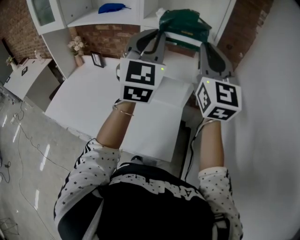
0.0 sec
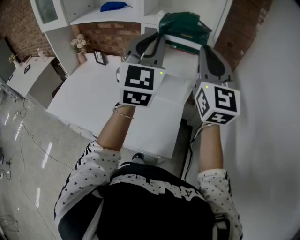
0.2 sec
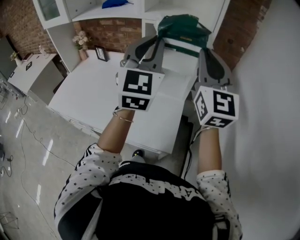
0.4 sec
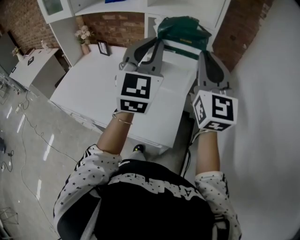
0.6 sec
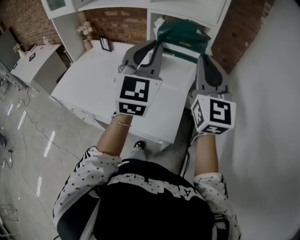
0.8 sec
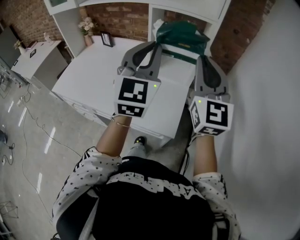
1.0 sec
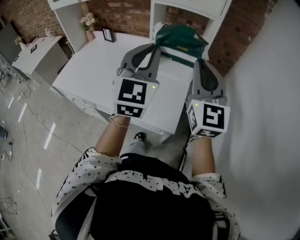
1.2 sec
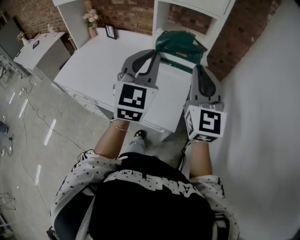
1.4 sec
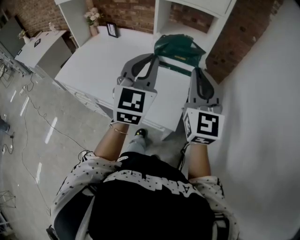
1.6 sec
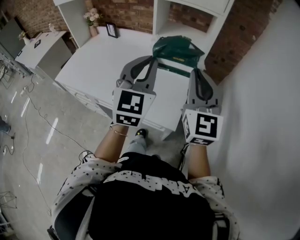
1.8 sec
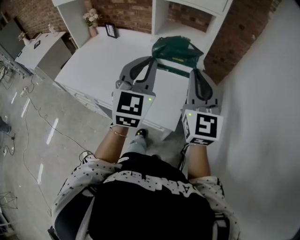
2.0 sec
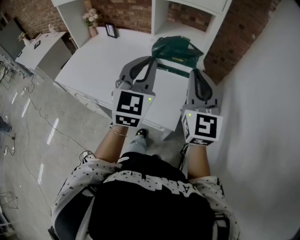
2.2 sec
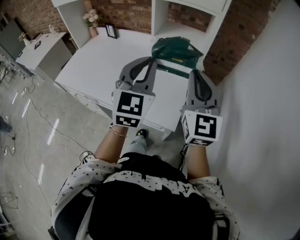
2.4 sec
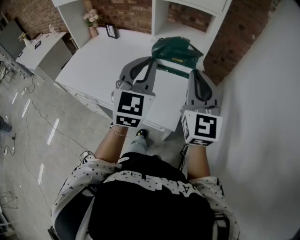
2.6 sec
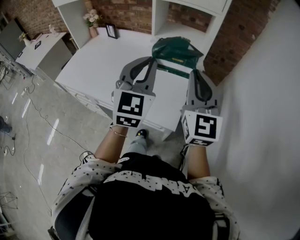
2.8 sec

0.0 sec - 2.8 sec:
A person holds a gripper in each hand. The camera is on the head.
0.0 sec - 1.4 sec: The two grippers go roughly 20 cm backward and downward.
1.4 sec - 2.8 sec: Both grippers stay put.

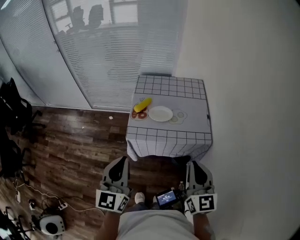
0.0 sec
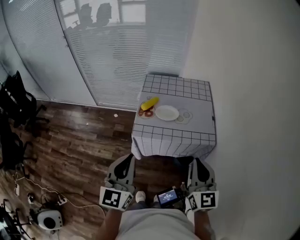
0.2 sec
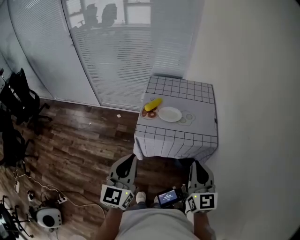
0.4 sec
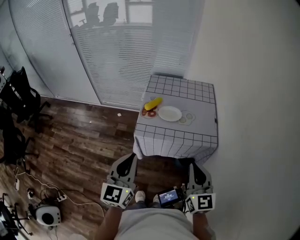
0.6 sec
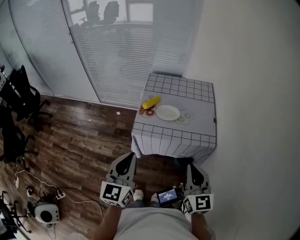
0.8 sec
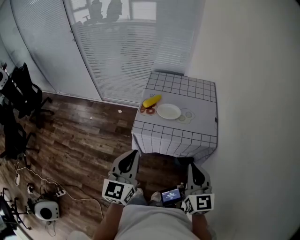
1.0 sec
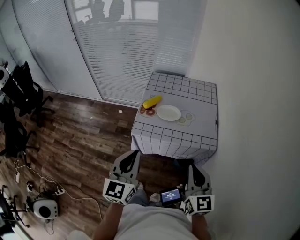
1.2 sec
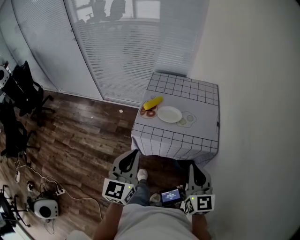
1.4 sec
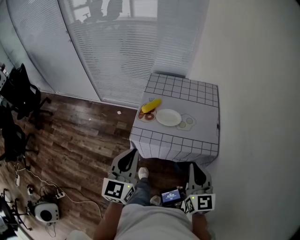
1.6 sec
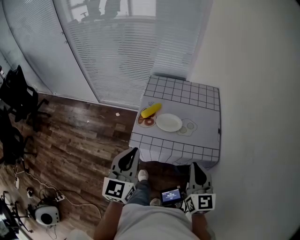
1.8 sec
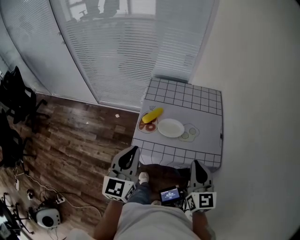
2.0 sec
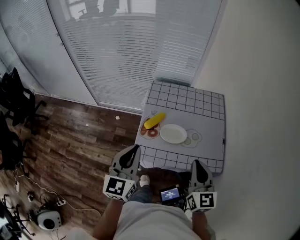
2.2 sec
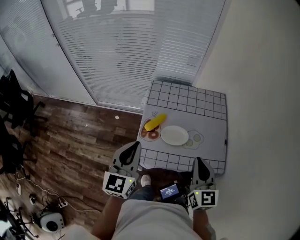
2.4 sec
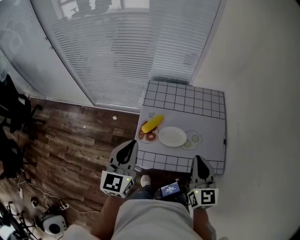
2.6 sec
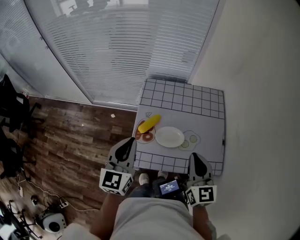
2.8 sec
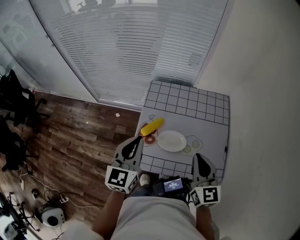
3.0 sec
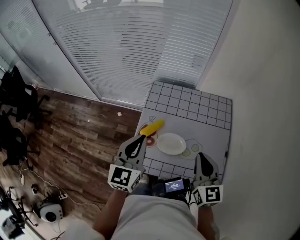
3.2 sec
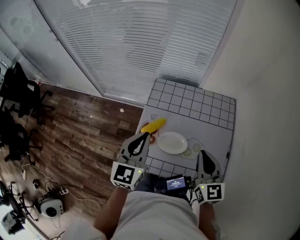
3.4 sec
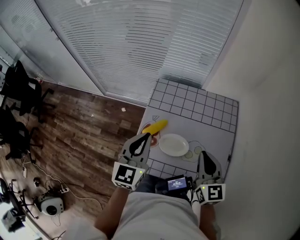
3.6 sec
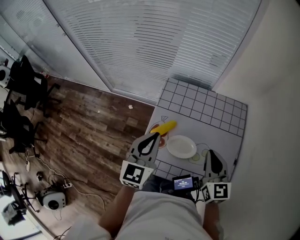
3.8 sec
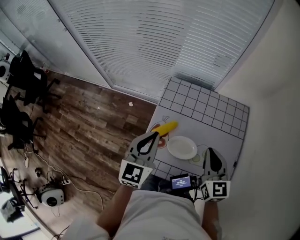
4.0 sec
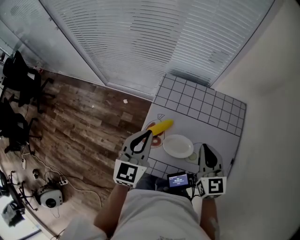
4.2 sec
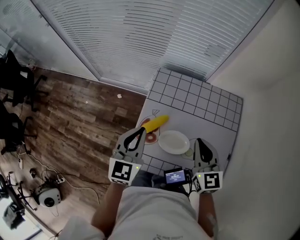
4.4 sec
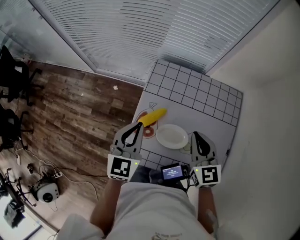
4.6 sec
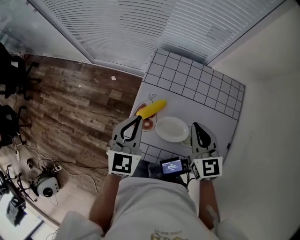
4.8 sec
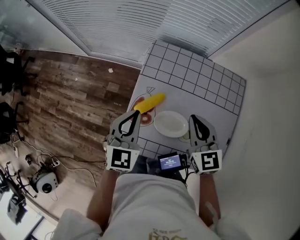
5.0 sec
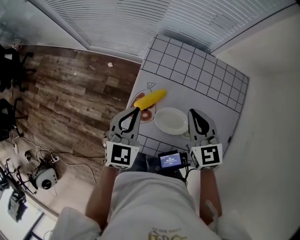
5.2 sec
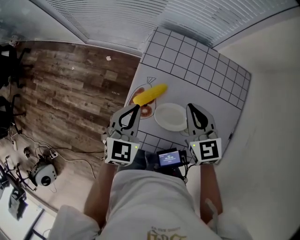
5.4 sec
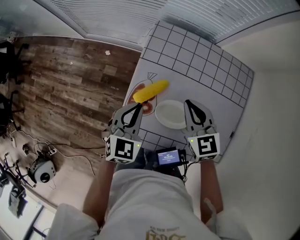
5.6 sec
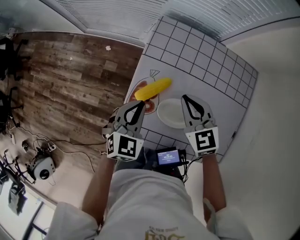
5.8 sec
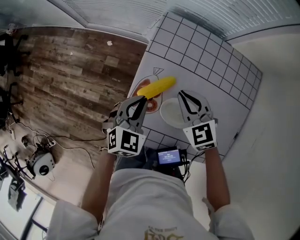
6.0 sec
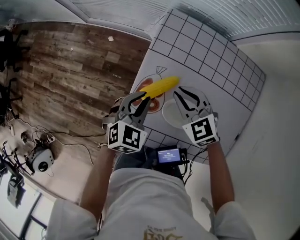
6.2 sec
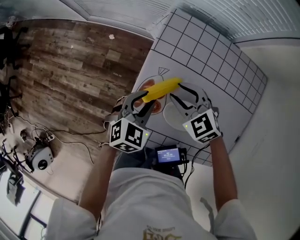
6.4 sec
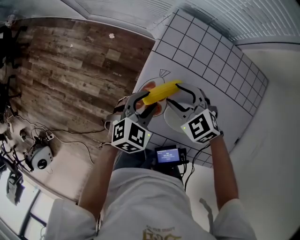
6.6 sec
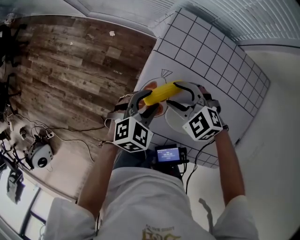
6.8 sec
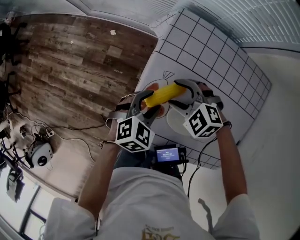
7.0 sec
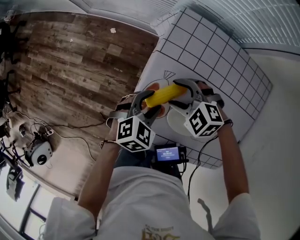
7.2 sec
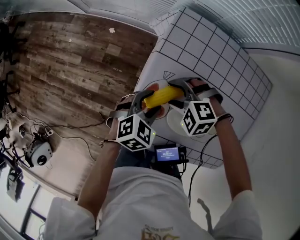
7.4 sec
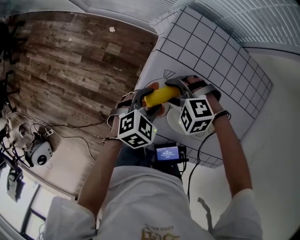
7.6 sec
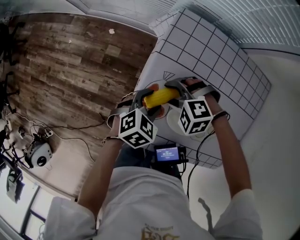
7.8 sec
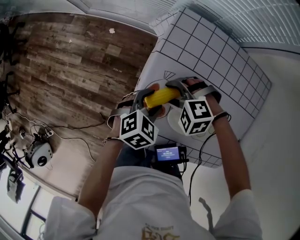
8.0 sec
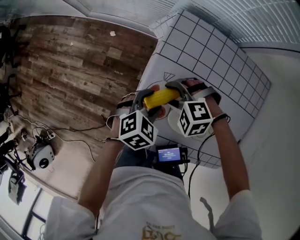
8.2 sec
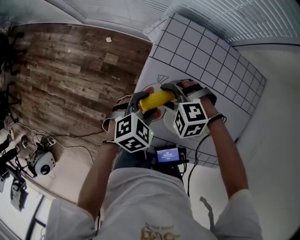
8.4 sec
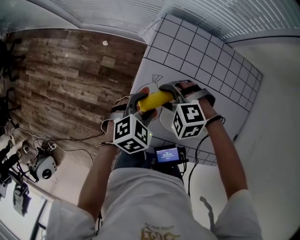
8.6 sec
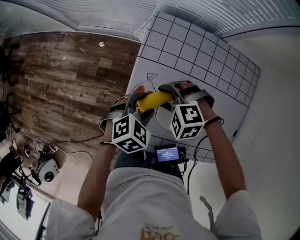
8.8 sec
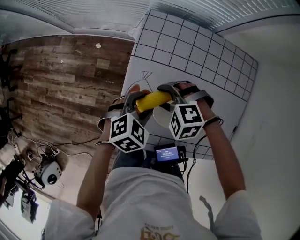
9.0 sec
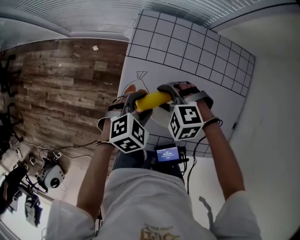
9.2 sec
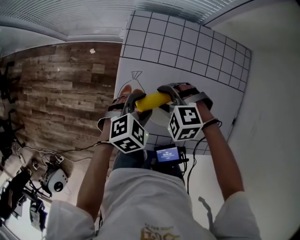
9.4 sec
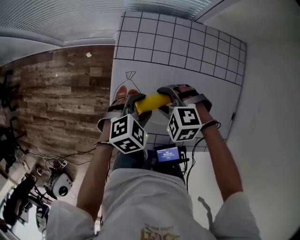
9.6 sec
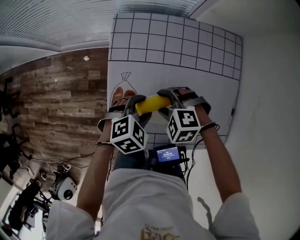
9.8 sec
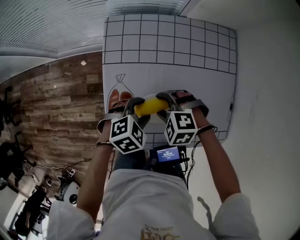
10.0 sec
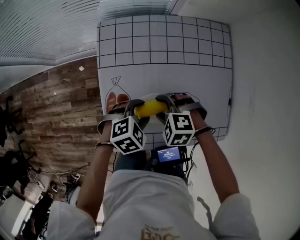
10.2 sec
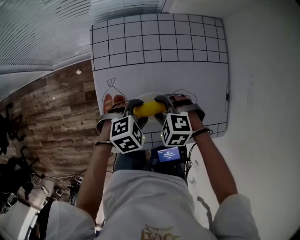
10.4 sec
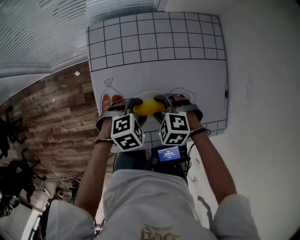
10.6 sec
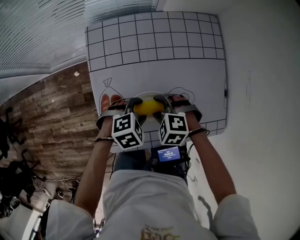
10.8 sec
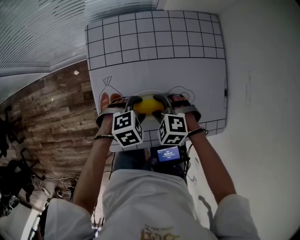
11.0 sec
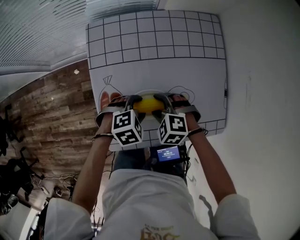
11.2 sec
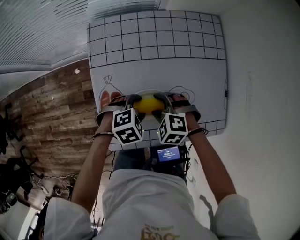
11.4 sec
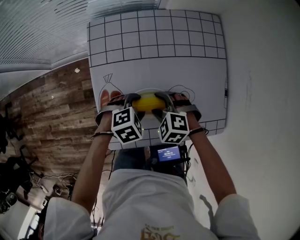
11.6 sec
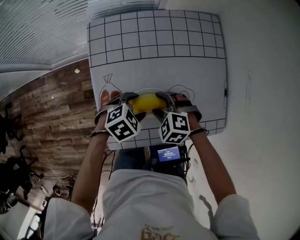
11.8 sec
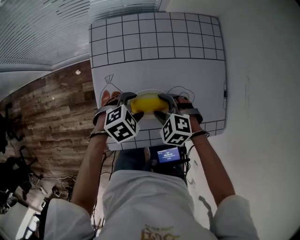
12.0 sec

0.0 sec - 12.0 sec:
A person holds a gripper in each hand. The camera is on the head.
0.0 sec - 1.6 sec: The two grippers go about 5 cm forward.
1.6 sec - 3.0 sec: Both grippers move forward, approximately 25 cm.
3.0 sec - 4.4 sec: The two grippers go some 10 cm forward and downward.
4.4 sec - 6.0 sec: The right gripper shifts about 20 cm downward, to the left and forward, and rotates about 30 degrees. Meanwhile the left gripper travels downward by some 15 cm, and swivels some 30 degrees.
6.0 sec - 7.6 sec: Both grippers move downward, roughly 10 cm. The left gripper swivels some 20 degrees, and opens. Meanwhile the right gripper rotates about 60 degrees, and opens its fingers.
7.6 sec - 9.0 sec: The right gripper changes place by some 5 cm.
9.0 sec - 10.4 sec: The right gripper ends up about 10 cm from where it was, and changes its angle by approximately 30 degrees. Meanwhile the left gripper changes place by approximately 10 cm, and changes its angle by approximately 30 degrees.
10.4 sec - 12.0 sec: The grippers move only a little.

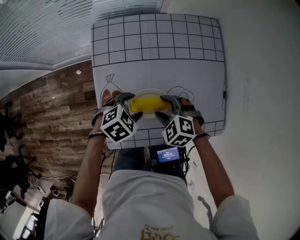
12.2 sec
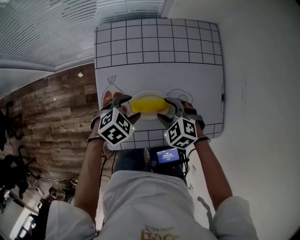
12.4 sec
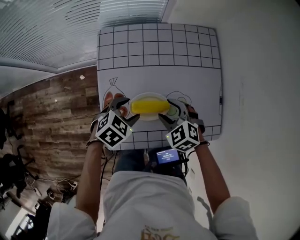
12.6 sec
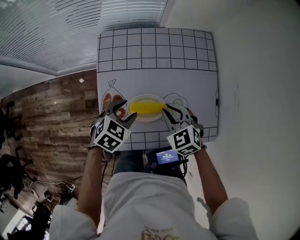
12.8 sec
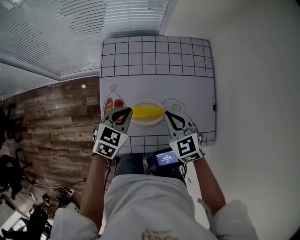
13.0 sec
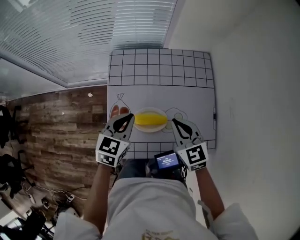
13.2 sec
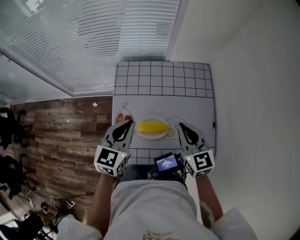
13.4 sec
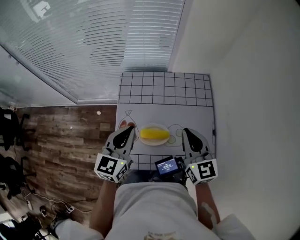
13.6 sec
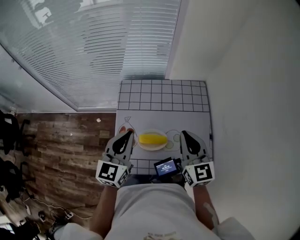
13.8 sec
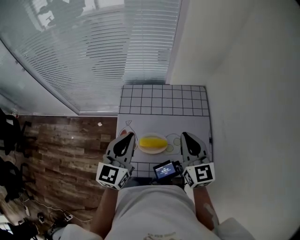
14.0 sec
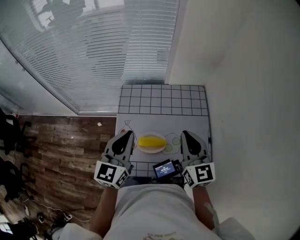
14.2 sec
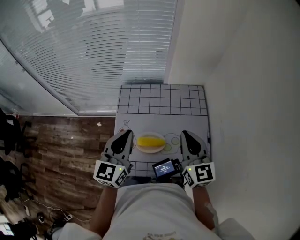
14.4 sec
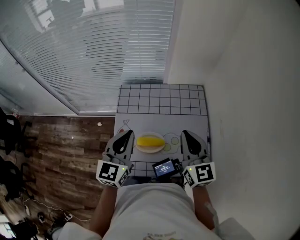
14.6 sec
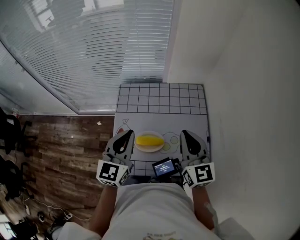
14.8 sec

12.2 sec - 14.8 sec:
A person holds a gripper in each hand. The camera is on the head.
12.2 sec - 13.4 sec: Both grippers move upward, some 20 cm. The left gripper angles its fingers upward, by approximately 40 degrees, and closes up; the right gripper tips its fingers upward by roughly 40 degrees, and closes.
13.4 sec - 14.8 sec: Both grippers travel together upward, some 10 cm.

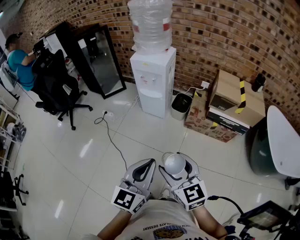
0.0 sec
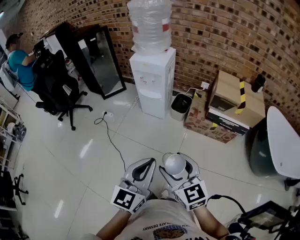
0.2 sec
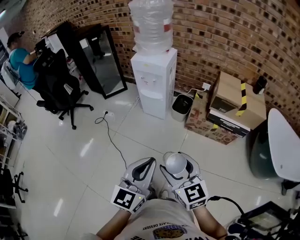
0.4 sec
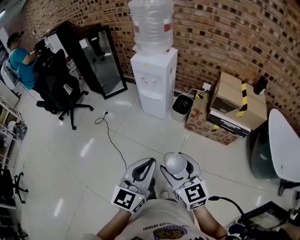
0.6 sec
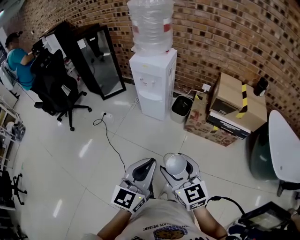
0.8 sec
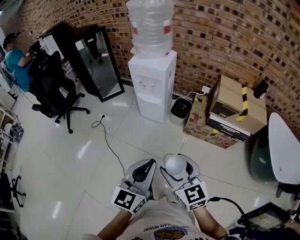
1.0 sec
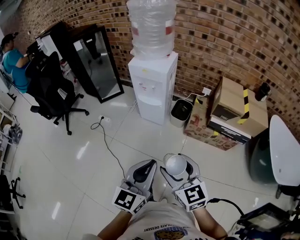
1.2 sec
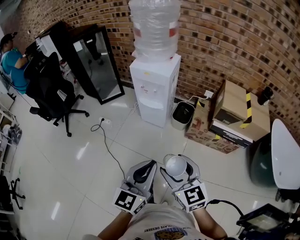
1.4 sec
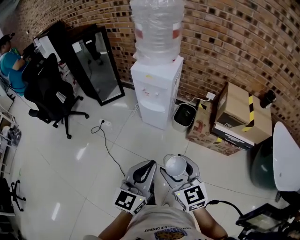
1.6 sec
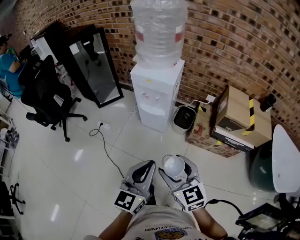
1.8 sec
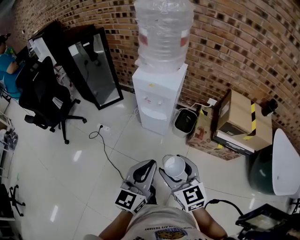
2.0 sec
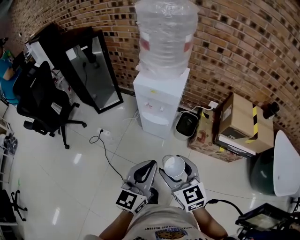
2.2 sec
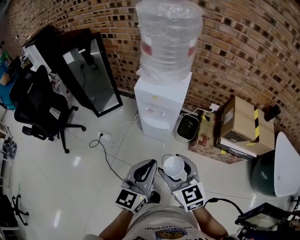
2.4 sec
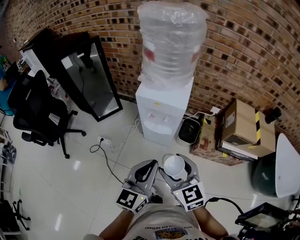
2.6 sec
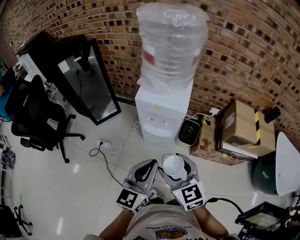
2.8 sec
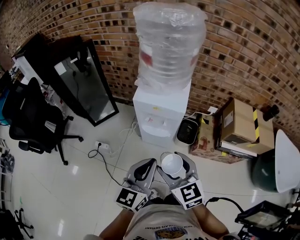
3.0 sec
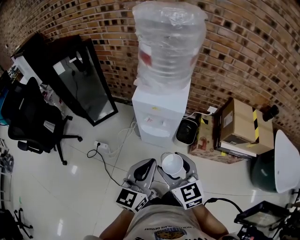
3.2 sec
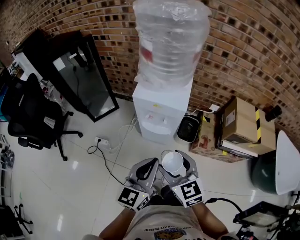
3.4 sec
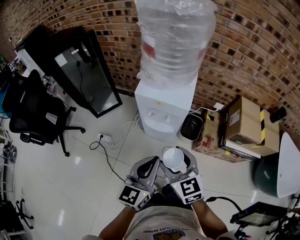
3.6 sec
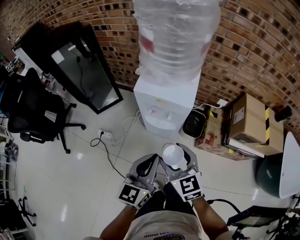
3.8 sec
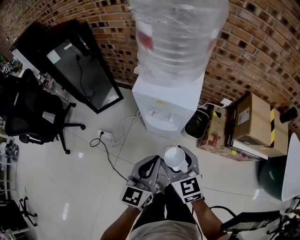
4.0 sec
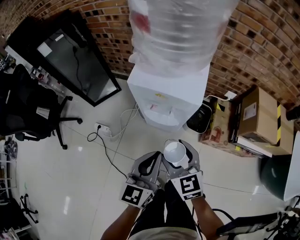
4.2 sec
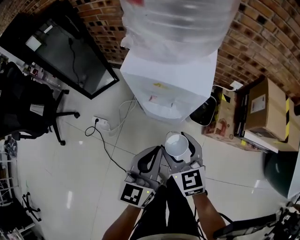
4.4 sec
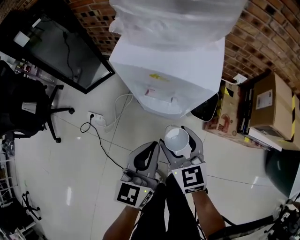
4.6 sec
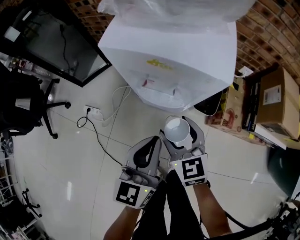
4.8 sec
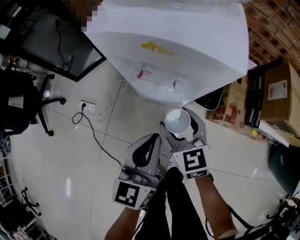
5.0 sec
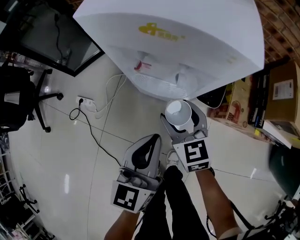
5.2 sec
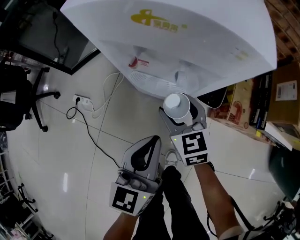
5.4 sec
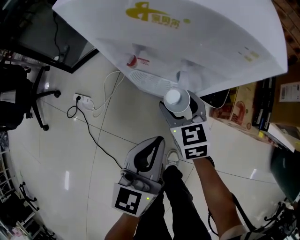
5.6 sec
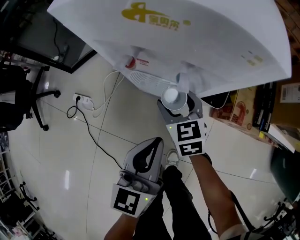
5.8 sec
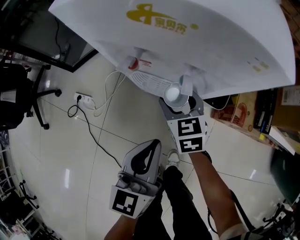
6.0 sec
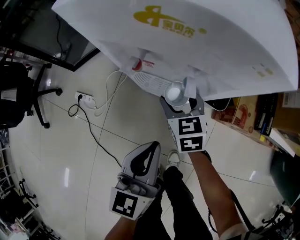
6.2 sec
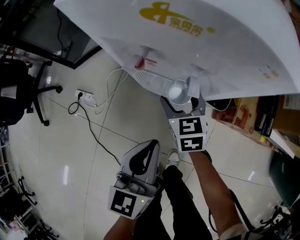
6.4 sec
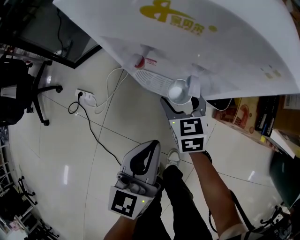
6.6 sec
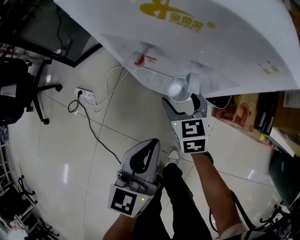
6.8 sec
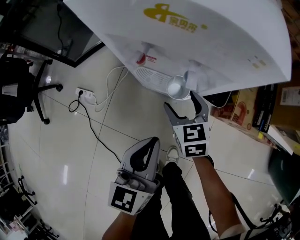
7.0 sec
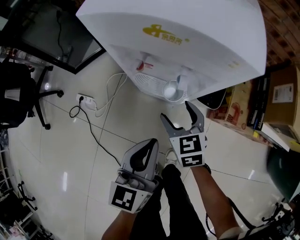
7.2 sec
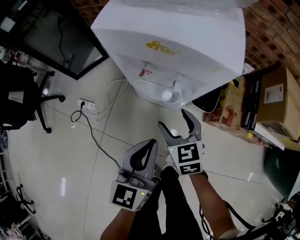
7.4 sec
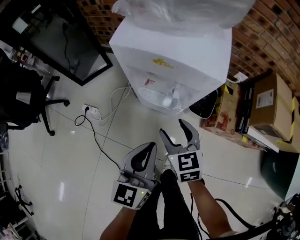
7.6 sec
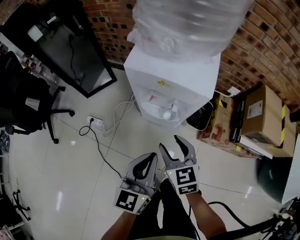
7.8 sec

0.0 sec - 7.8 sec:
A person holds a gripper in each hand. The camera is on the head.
0.0 sec - 1.6 sec: The grippers both shift forward by approximately 15 cm.
1.6 sec - 3.2 sec: Both grippers travel together forward and to the left, about 25 cm.
3.2 sec - 4.6 sec: Both grippers move downward and forward, some 25 cm.
4.6 sec - 6.2 sec: The left gripper is displaced downward by some 15 cm. The right gripper is displaced downward and forward by approximately 25 cm.
6.2 sec - 7.8 sec: The left gripper is displaced upward by about 15 cm; the right gripper travels upward and backward by roughly 25 cm.
